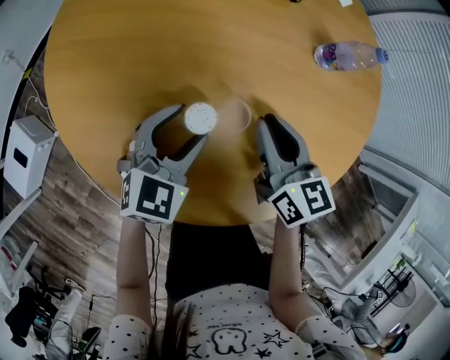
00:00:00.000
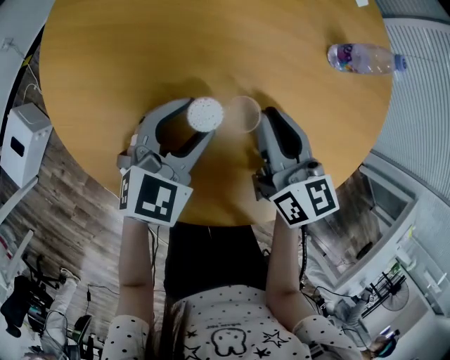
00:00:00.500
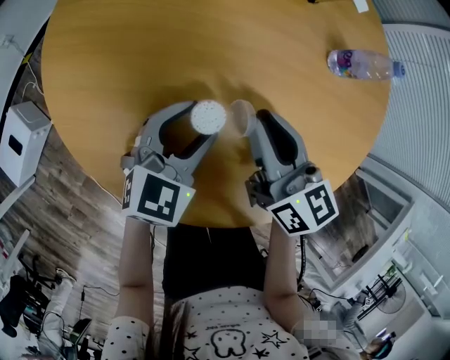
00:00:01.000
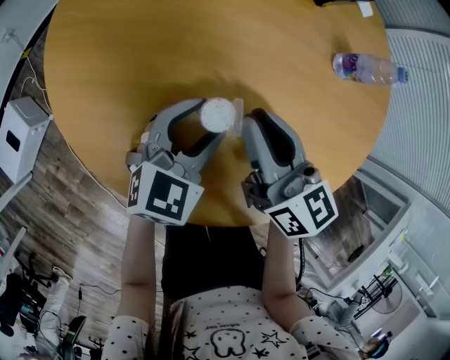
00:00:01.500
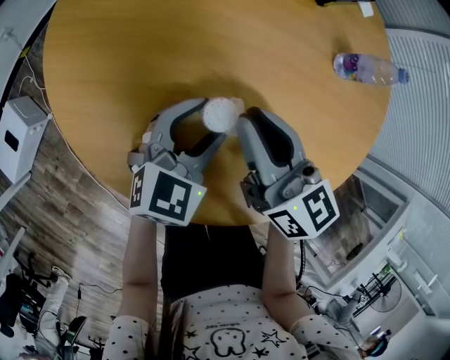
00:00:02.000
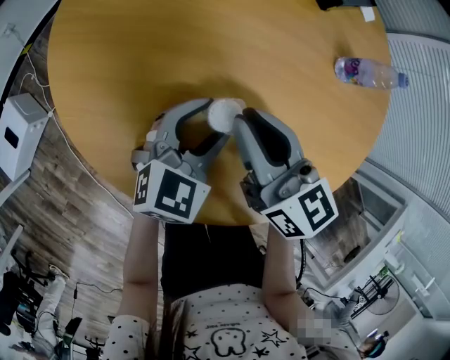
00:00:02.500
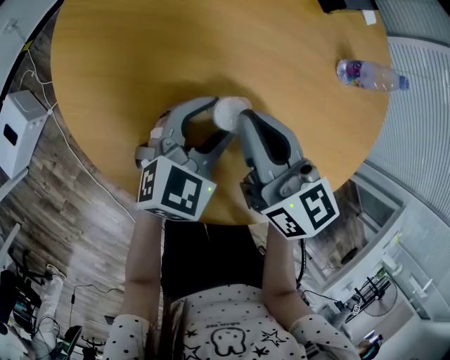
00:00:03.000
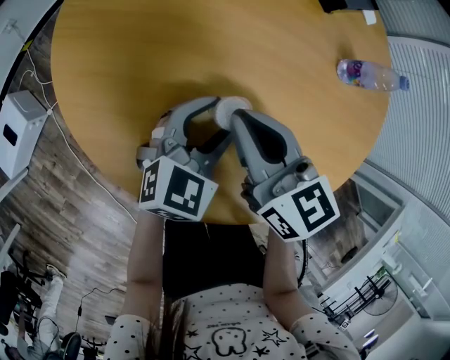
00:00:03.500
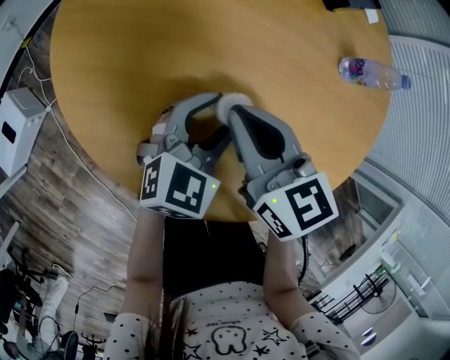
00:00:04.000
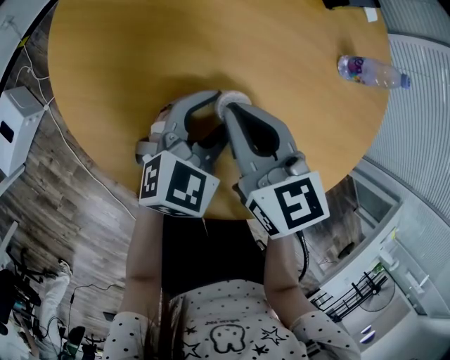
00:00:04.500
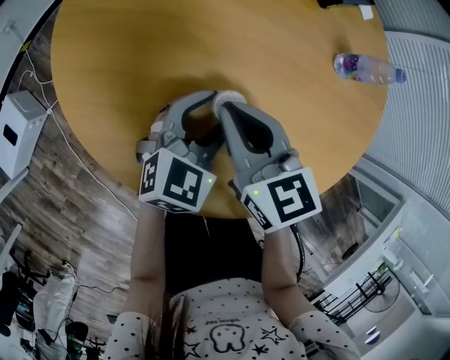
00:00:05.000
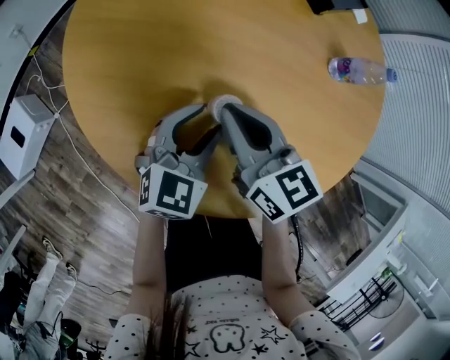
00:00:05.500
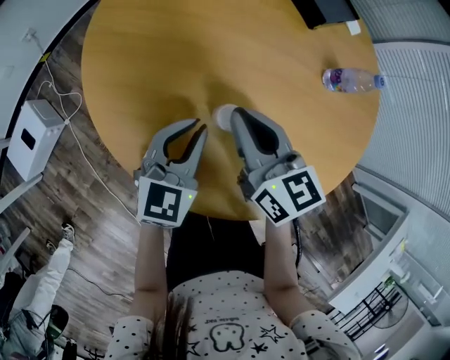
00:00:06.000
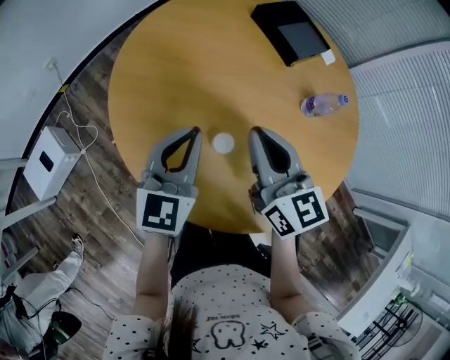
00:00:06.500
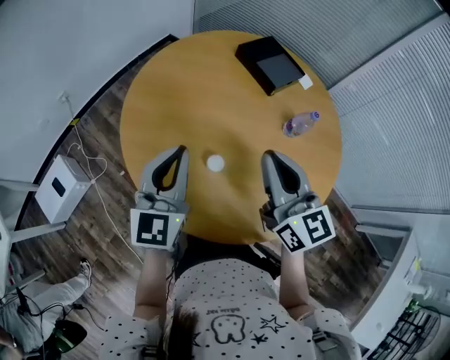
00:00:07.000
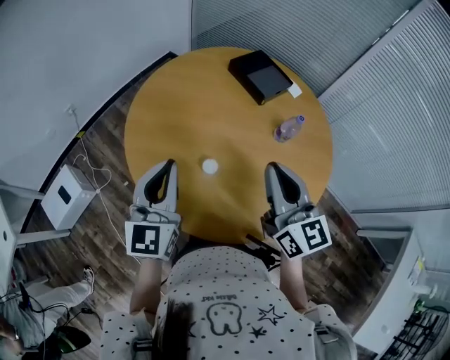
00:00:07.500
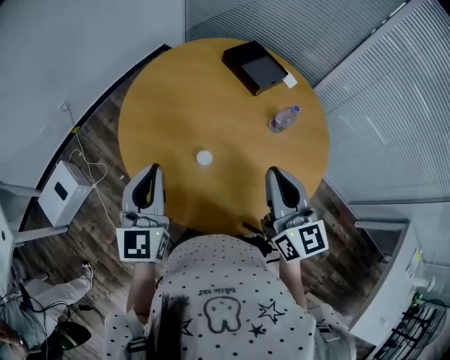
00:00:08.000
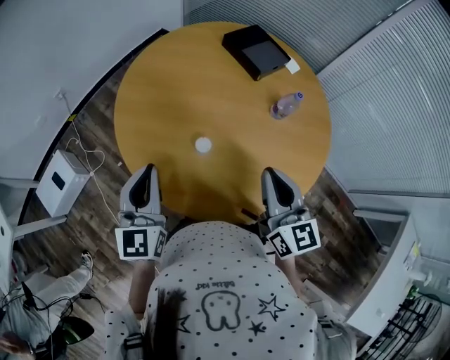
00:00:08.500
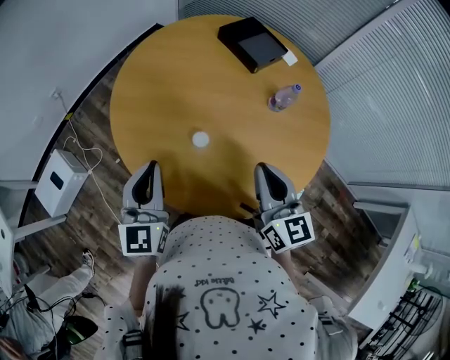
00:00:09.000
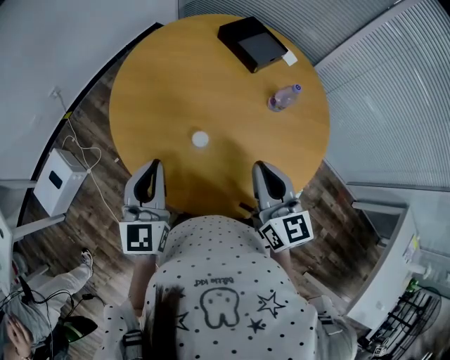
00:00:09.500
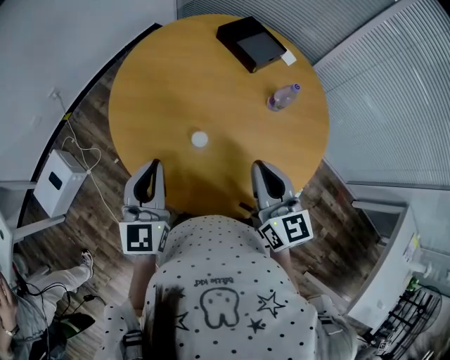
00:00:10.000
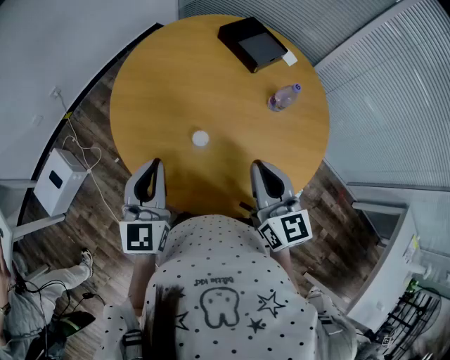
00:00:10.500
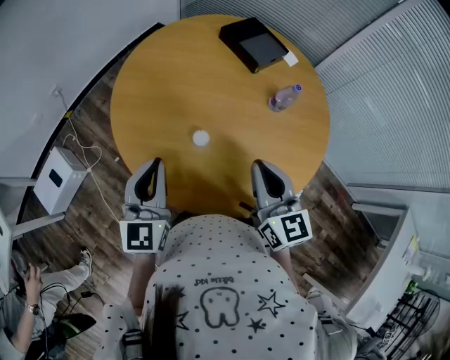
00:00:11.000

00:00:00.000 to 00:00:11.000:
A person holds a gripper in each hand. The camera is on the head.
00:00:00.000 to 00:00:02.000: The right gripper moves to the left, roughly 10 cm.
00:00:02.000 to 00:00:03.500: There are only small adjustments of the grippers.
00:00:03.500 to 00:00:05.500: There are only small adjustments of the grippers.
00:00:05.500 to 00:00:07.500: Both grippers travel together upward, some 30 cm. The right gripper swivels roughly 30 degrees. Meanwhile the left gripper changes its angle by some 40 degrees, and closes its fingers.
00:00:07.500 to 00:00:09.000: Both grippers move downward, roughly 5 cm.
00:00:09.000 to 00:00:11.000: Neither gripper changes place.

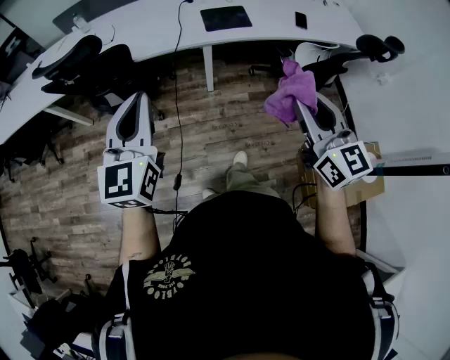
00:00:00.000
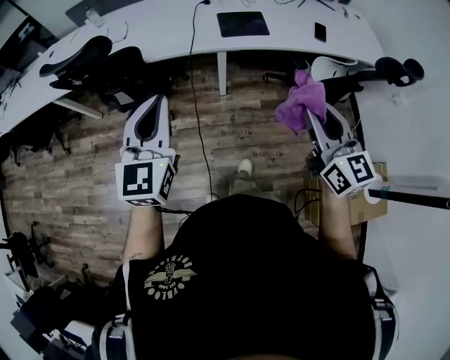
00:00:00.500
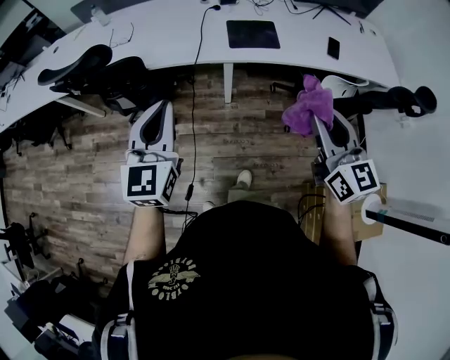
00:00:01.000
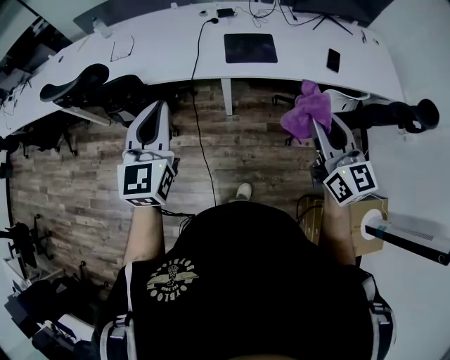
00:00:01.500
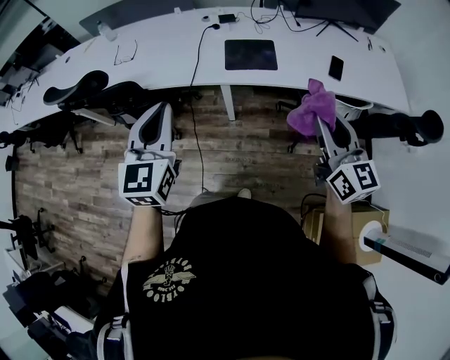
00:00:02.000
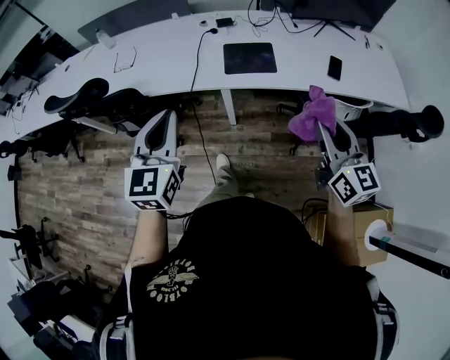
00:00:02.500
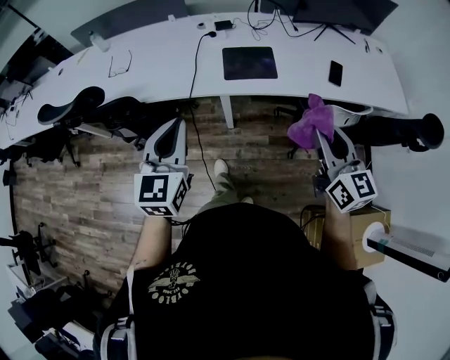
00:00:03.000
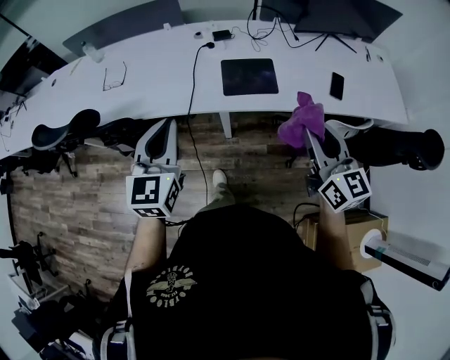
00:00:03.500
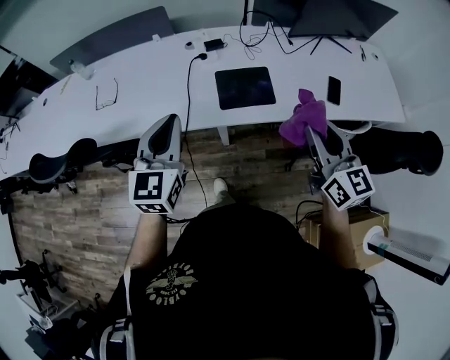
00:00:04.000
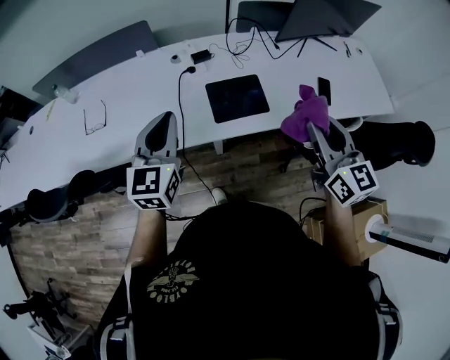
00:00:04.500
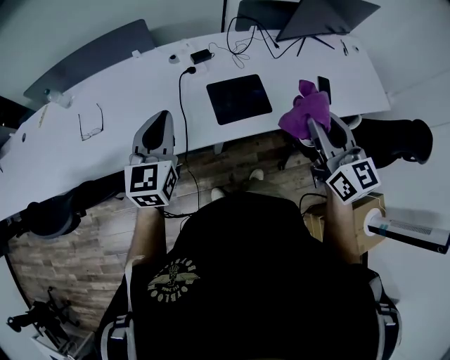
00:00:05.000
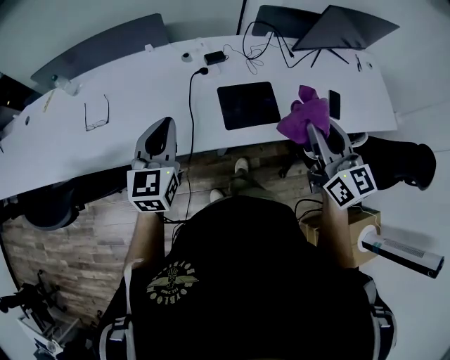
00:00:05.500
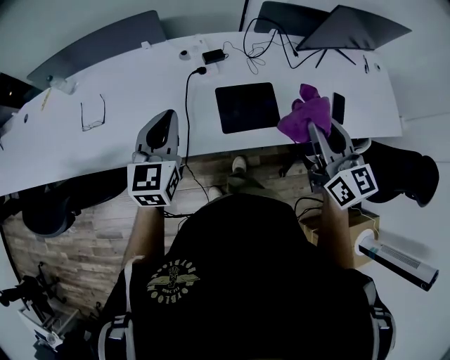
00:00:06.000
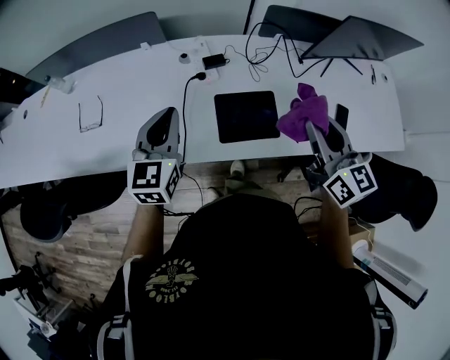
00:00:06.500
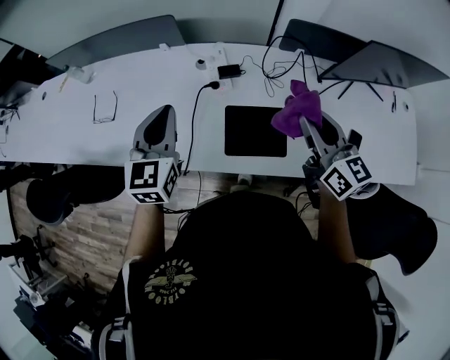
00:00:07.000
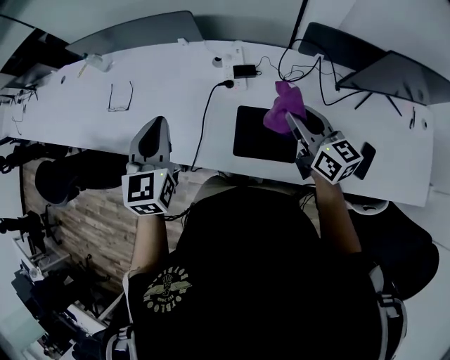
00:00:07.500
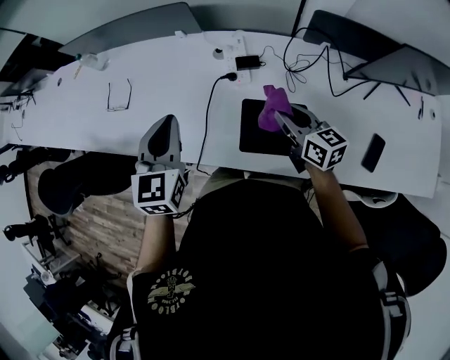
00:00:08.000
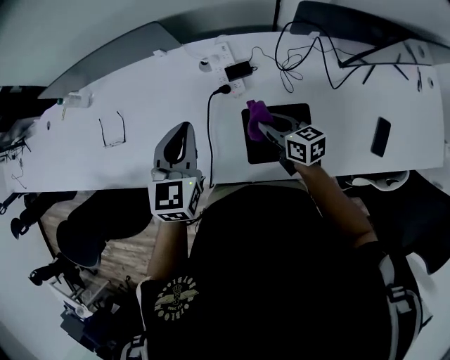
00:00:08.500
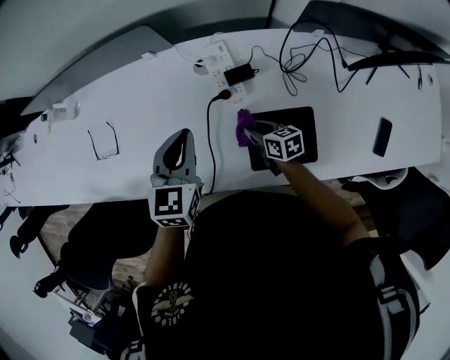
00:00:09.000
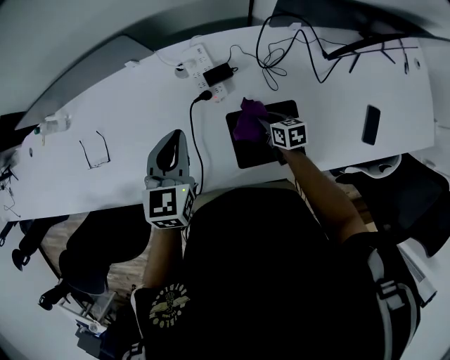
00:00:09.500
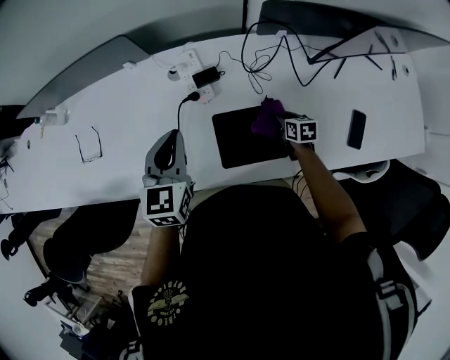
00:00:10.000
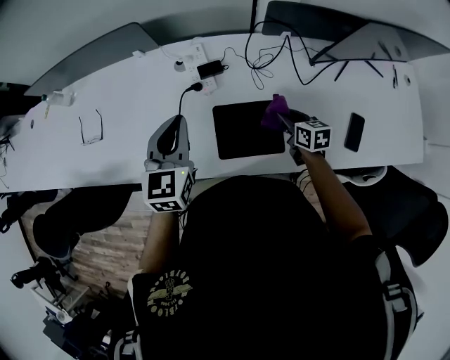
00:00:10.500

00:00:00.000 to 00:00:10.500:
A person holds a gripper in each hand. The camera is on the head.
00:00:00.000 to 00:00:02.000: The two grippers go about 25 cm forward and to the right.
00:00:02.000 to 00:00:04.000: Both grippers move forward, some 20 cm.
00:00:04.000 to 00:00:06.500: Both grippers move forward, roughly 20 cm.
00:00:06.500 to 00:00:08.500: The left gripper is displaced forward by about 10 cm. The right gripper moves downward and forward, roughly 30 cm, and turns by approximately 40 degrees.
00:00:08.500 to 00:00:10.500: The right gripper heads to the right, covering about 15 cm. The left gripper moves to the right, about 5 cm.

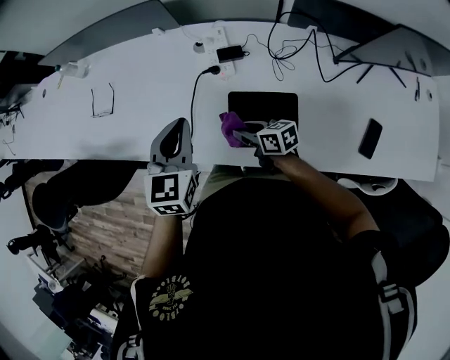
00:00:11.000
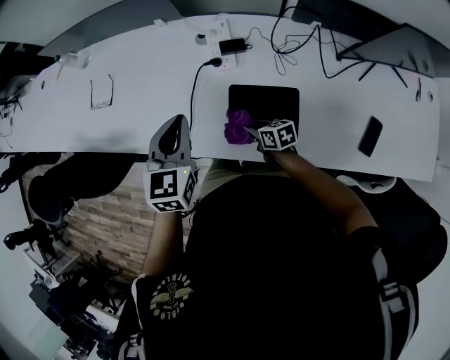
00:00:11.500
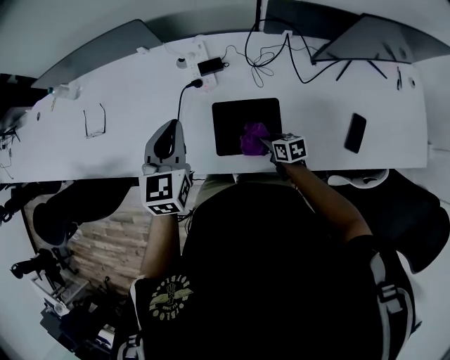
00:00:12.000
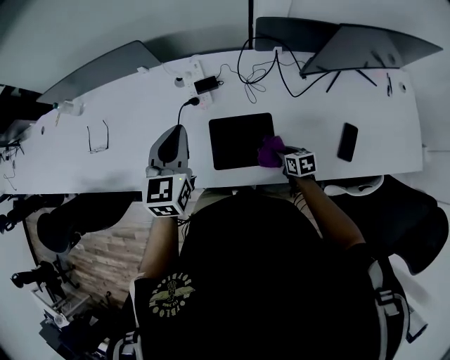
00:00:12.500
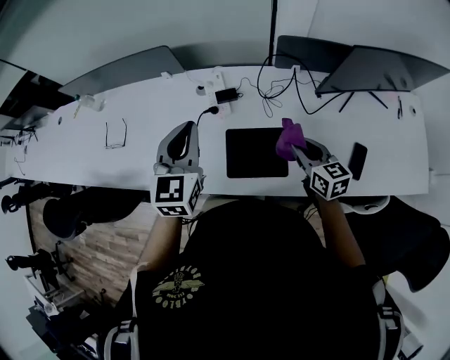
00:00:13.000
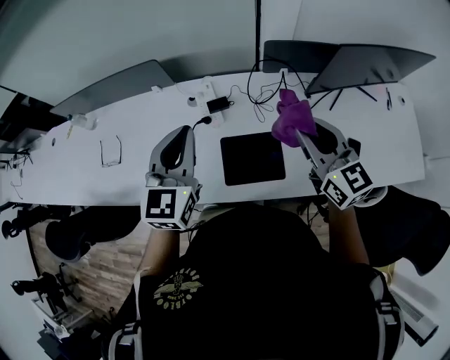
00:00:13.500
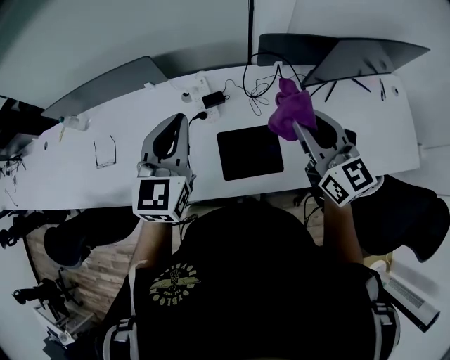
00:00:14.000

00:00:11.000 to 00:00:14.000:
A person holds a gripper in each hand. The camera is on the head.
00:00:11.000 to 00:00:12.500: The left gripper is displaced to the right by roughly 5 cm; the right gripper shifts approximately 25 cm to the right, backward and downward, and changes its angle by approximately 30 degrees.
00:00:12.500 to 00:00:14.000: The left gripper is displaced upward by roughly 10 cm. The right gripper moves upward, roughly 40 cm, and angles its fingers upward, by approximately 50 degrees.

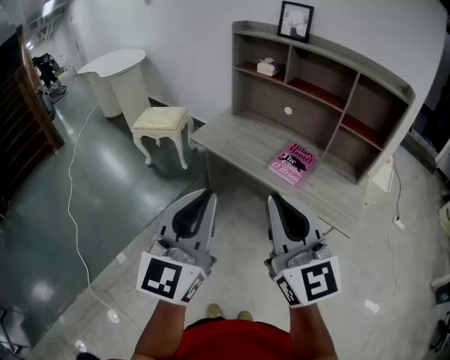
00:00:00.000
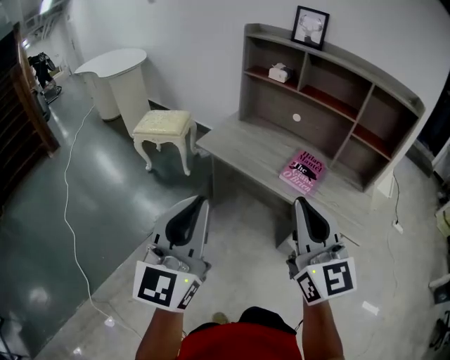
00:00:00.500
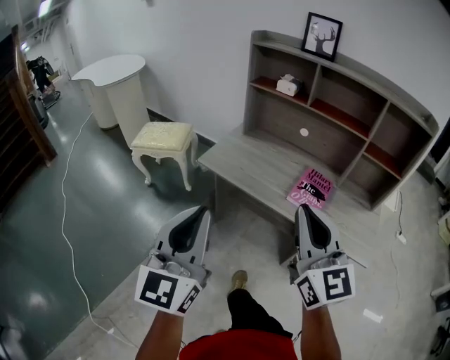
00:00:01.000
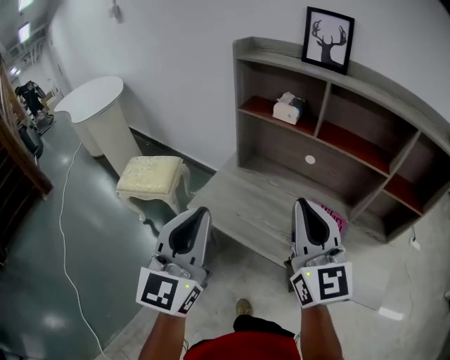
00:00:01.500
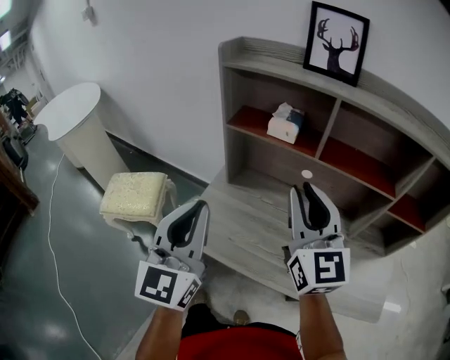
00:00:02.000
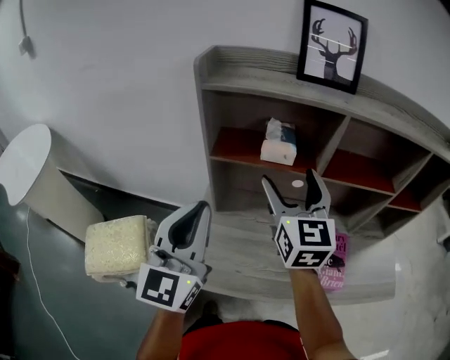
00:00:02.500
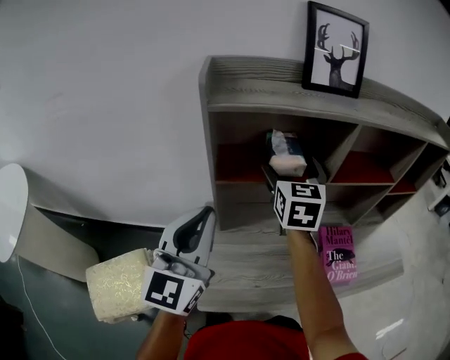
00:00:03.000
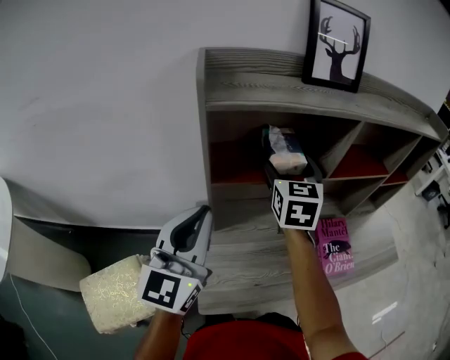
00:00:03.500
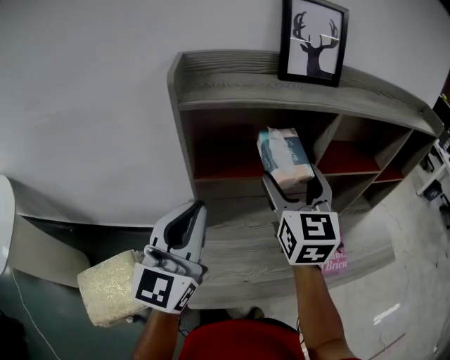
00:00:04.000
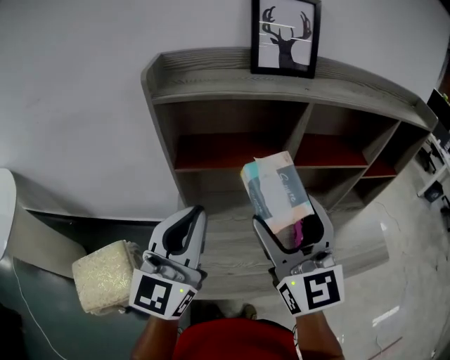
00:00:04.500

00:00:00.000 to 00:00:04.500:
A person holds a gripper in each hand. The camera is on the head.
00:00:00.000 to 00:00:02.000: Both grippers are carried forward, some 50 cm. The right gripper swivels about 20 degrees.
00:00:02.000 to 00:00:04.500: The left gripper rotates approximately 30 degrees. Meanwhile the right gripper travels downward and back again, roughly 5 cm each way, swivels roughly 20 degrees, and opens its fingers.
